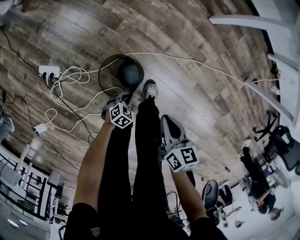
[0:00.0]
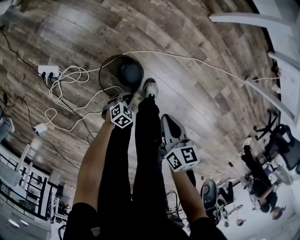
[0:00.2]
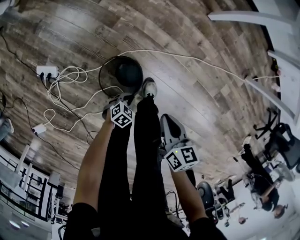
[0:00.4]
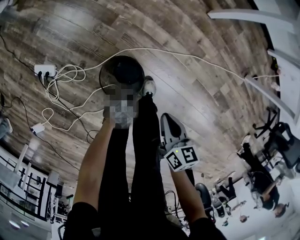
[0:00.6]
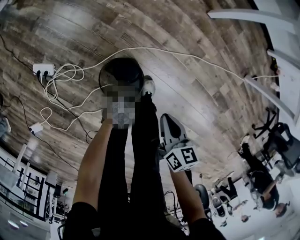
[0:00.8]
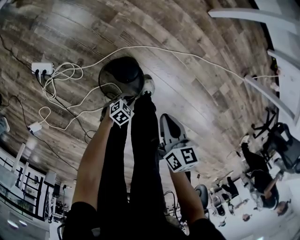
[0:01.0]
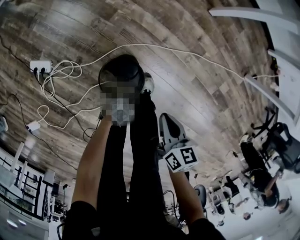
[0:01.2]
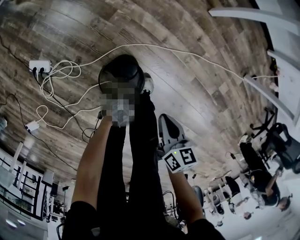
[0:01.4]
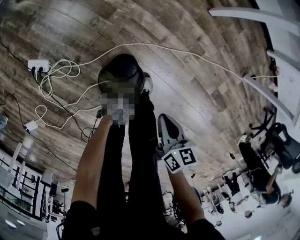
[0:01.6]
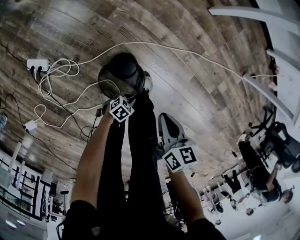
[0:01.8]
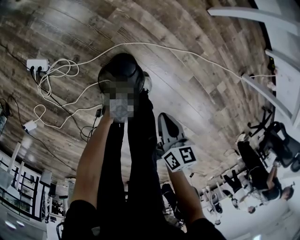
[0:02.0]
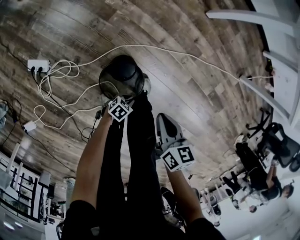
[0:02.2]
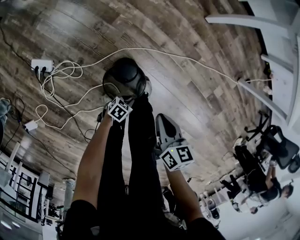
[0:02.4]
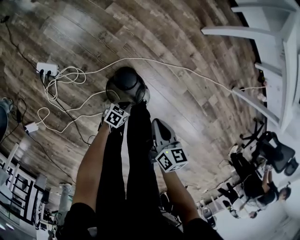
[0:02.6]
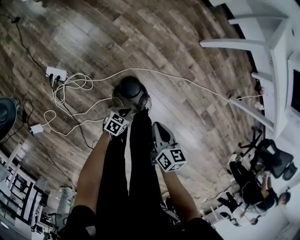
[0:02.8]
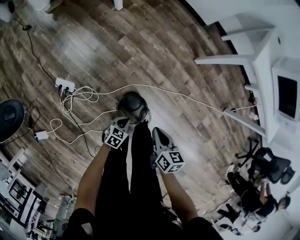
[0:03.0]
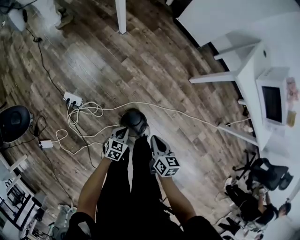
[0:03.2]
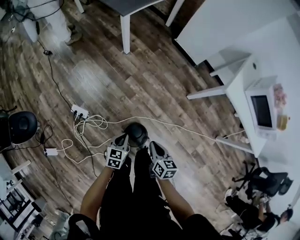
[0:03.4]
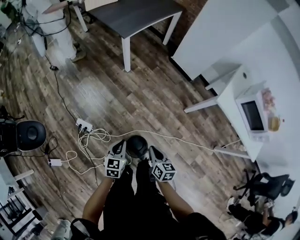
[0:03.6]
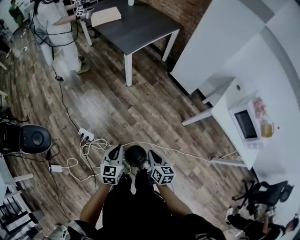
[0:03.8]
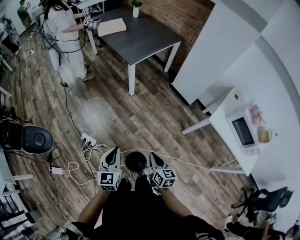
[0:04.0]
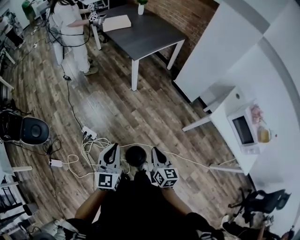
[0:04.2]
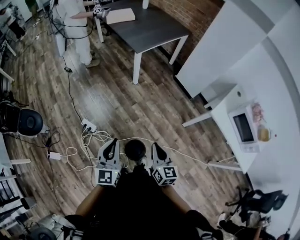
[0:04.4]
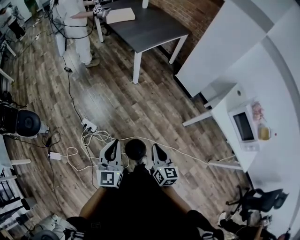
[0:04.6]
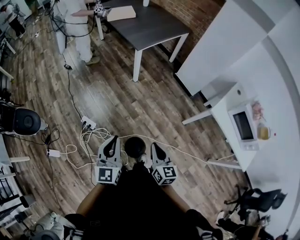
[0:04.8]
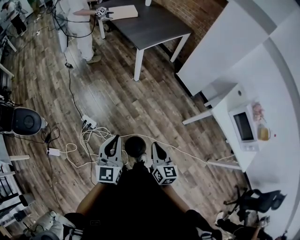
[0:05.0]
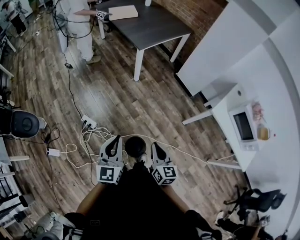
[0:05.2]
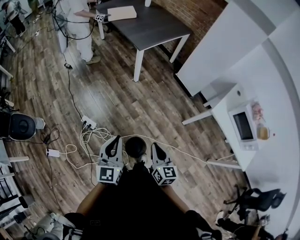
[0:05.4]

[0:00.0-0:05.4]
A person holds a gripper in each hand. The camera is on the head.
0:00.0 to 0:01.4: The left gripper ends up roughly 10 cm from where it was.
0:01.4 to 0:02.8: The left gripper shifts approximately 15 cm upward, and swivels approximately 30 degrees. The right gripper is displaced upward by roughly 10 cm.
0:02.8 to 0:04.0: The right gripper moves upward, approximately 35 cm, and changes its angle by approximately 20 degrees. The left gripper moves upward, about 70 cm, and tilts its fingers some 40 degrees upward.
0:04.0 to 0:05.4: The left gripper heads upward and backward, covering roughly 10 cm, while the right gripper travels upward by roughly 5 cm.

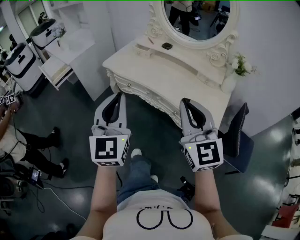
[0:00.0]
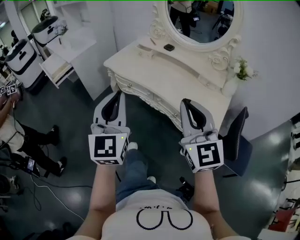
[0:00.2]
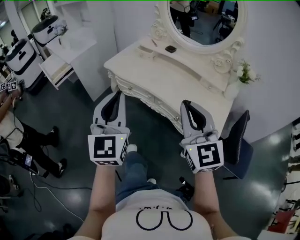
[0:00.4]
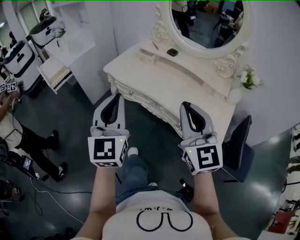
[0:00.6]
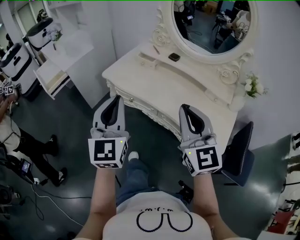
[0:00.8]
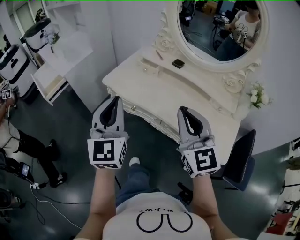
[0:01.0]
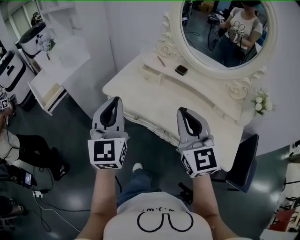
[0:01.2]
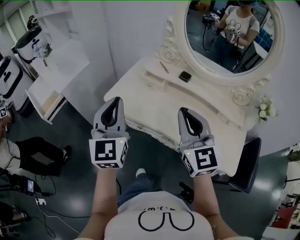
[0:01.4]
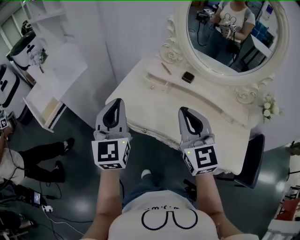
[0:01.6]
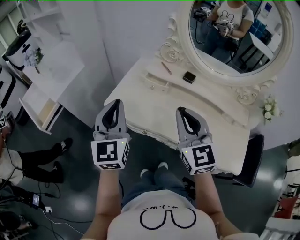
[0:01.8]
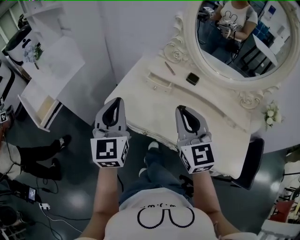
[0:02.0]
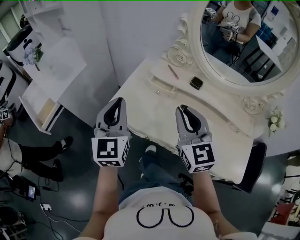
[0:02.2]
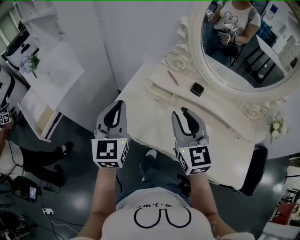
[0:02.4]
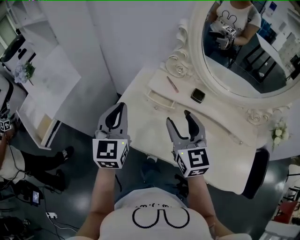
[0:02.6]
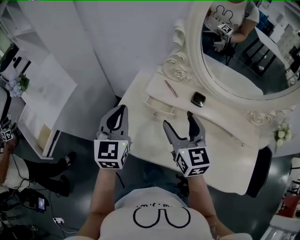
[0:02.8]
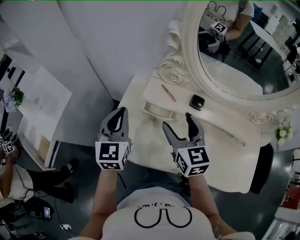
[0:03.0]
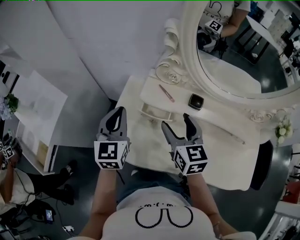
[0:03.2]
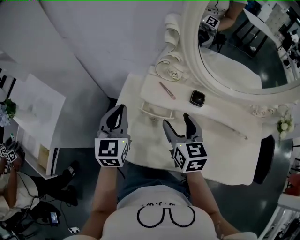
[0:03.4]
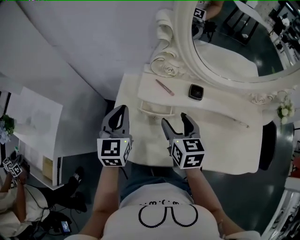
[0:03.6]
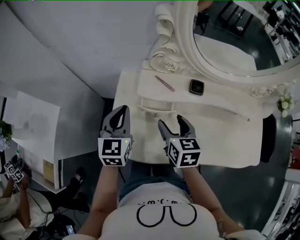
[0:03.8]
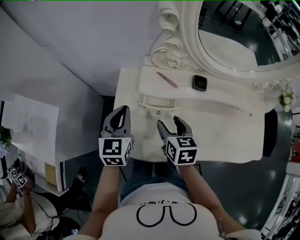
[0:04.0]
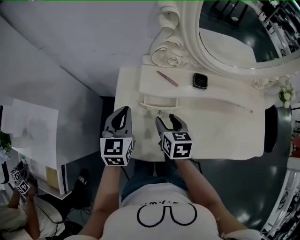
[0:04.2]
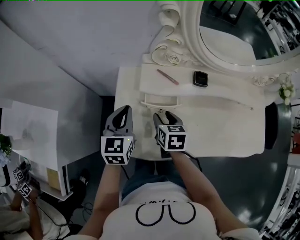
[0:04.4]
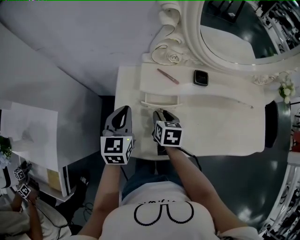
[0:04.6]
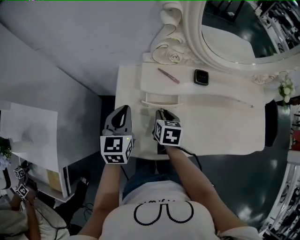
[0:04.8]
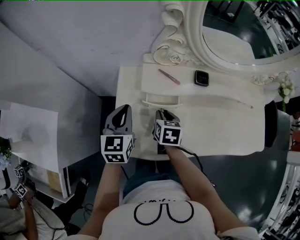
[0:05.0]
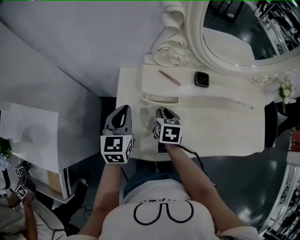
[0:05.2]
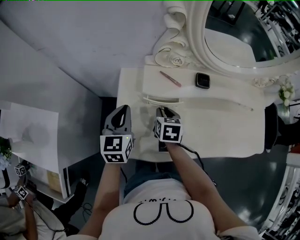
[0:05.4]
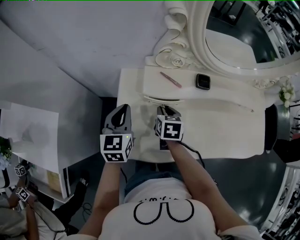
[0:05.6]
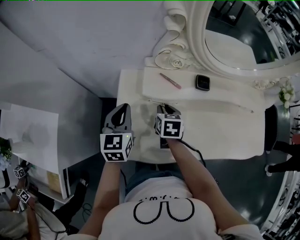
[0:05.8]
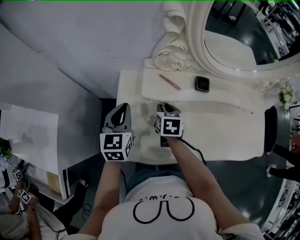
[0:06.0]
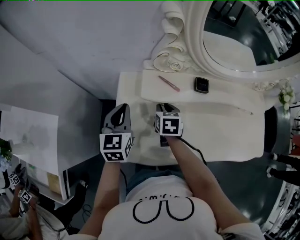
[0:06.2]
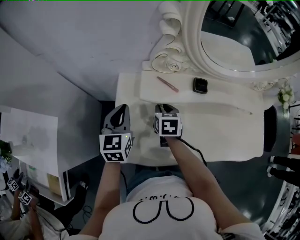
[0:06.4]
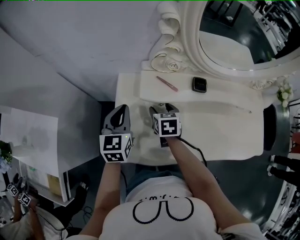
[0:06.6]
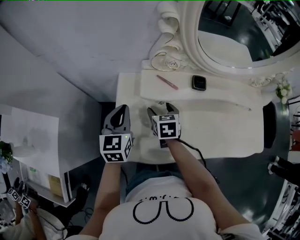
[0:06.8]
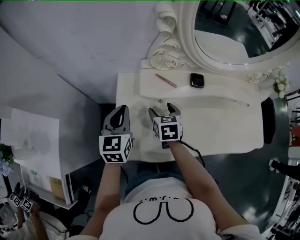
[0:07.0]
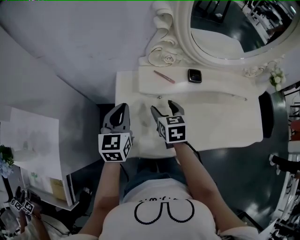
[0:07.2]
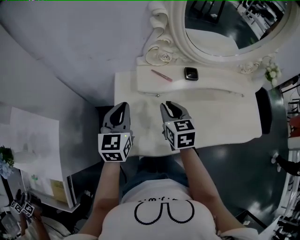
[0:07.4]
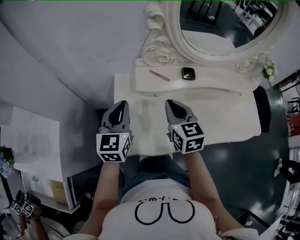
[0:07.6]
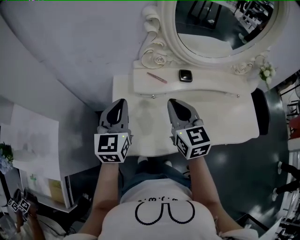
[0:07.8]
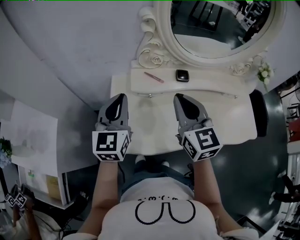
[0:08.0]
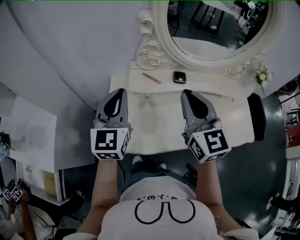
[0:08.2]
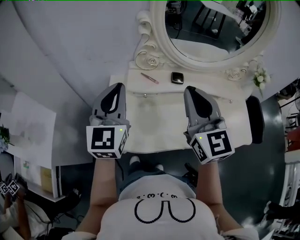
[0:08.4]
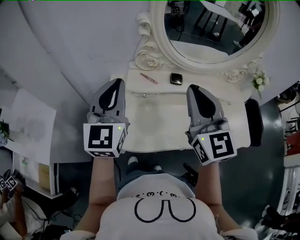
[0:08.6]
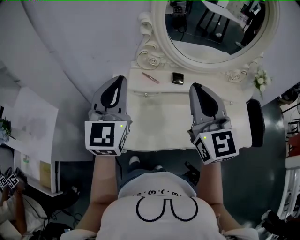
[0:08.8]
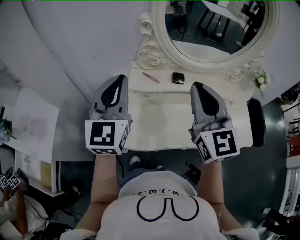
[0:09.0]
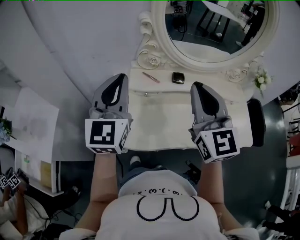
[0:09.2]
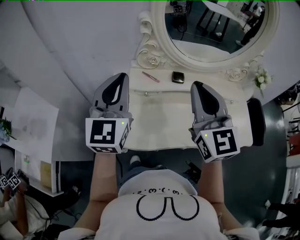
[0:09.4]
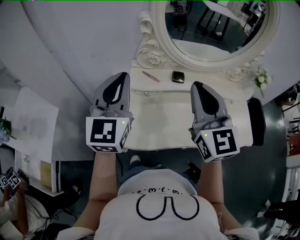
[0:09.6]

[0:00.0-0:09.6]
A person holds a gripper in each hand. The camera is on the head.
0:00.0 to 0:01.6: The two grippers go approximately 40 cm forward.
0:01.6 to 0:03.2: The left gripper heads forward, covering roughly 30 cm, and swivels some 20 degrees, while the right gripper is displaced forward and downward by some 30 cm, rotates about 30 degrees, and opens its fingers.
0:03.2 to 0:04.8: The left gripper is displaced downward by some 10 cm, and rotates roughly 20 degrees, while the right gripper goes approximately 20 cm downward, turns by approximately 40 degrees, and closes.
0:04.8 to 0:06.4: The right gripper is displaced forward by about 5 cm.
0:06.4 to 0:08.0: The left gripper goes approximately 15 cm upward and backward. The right gripper heads upward and backward, covering some 30 cm, angles its fingers upward, by about 40 degrees, and opens and closes again.
0:08.0 to 0:09.6: The right gripper travels upward and to the right by roughly 10 cm; the left gripper goes about 10 cm upward.

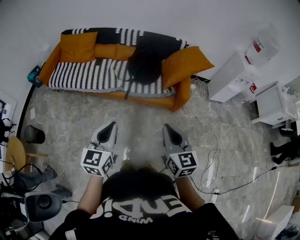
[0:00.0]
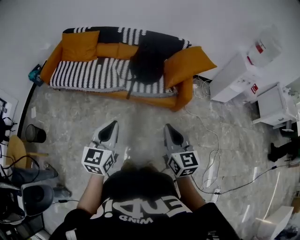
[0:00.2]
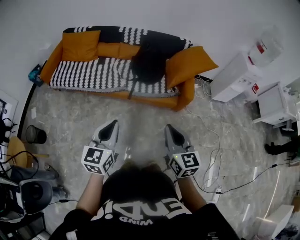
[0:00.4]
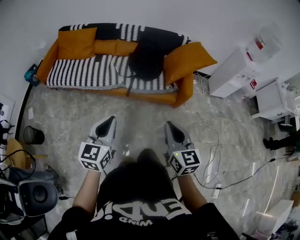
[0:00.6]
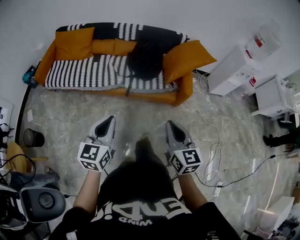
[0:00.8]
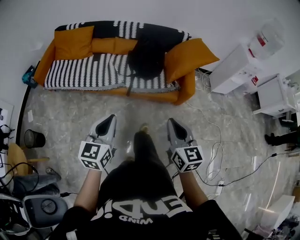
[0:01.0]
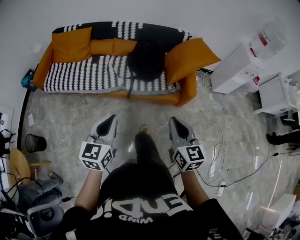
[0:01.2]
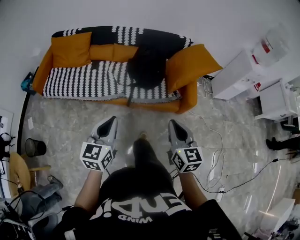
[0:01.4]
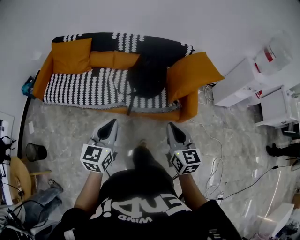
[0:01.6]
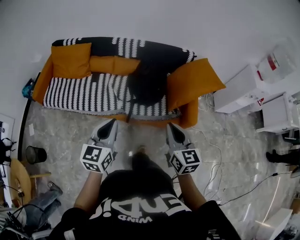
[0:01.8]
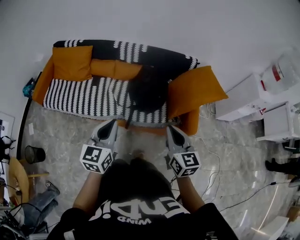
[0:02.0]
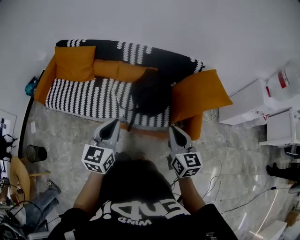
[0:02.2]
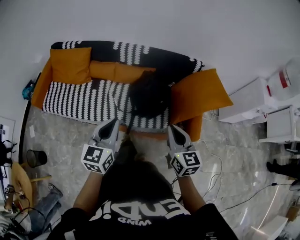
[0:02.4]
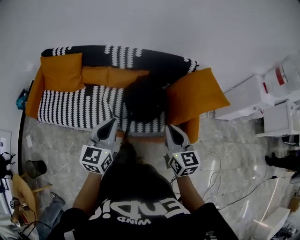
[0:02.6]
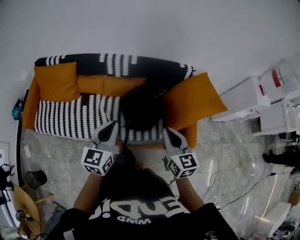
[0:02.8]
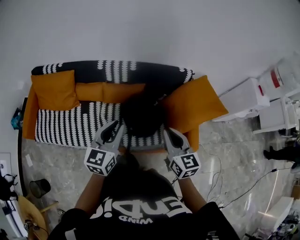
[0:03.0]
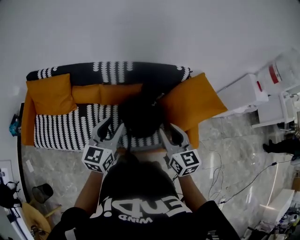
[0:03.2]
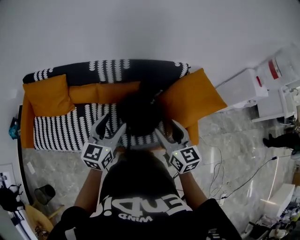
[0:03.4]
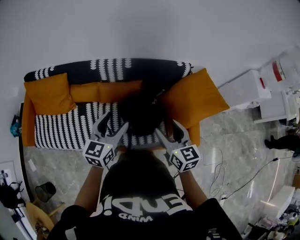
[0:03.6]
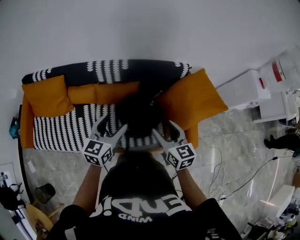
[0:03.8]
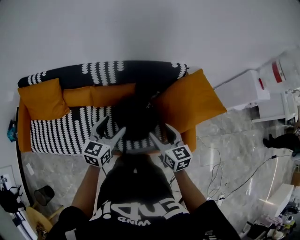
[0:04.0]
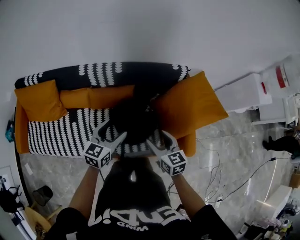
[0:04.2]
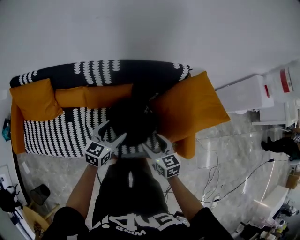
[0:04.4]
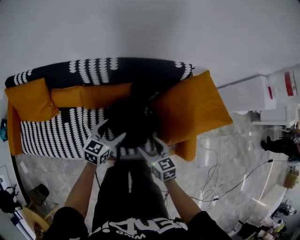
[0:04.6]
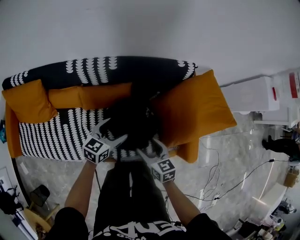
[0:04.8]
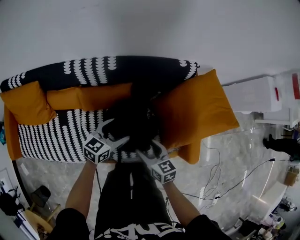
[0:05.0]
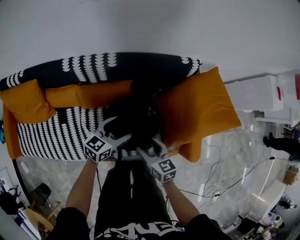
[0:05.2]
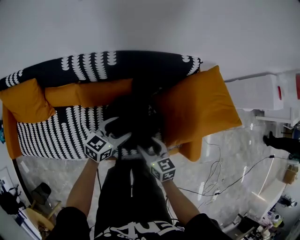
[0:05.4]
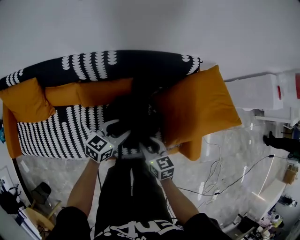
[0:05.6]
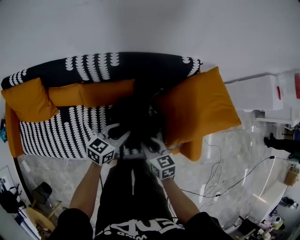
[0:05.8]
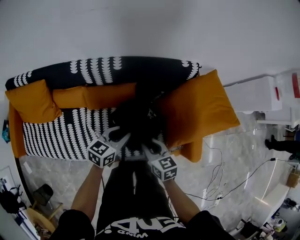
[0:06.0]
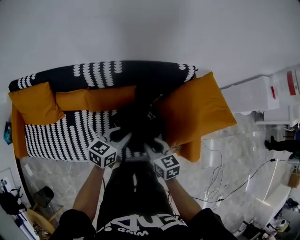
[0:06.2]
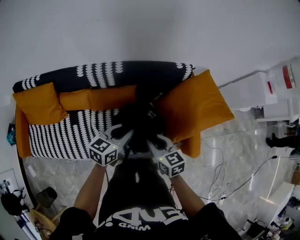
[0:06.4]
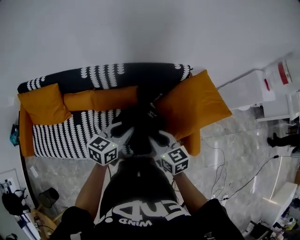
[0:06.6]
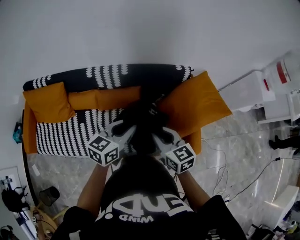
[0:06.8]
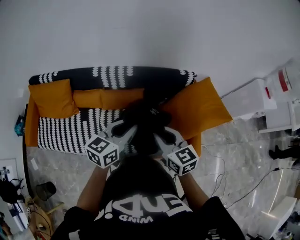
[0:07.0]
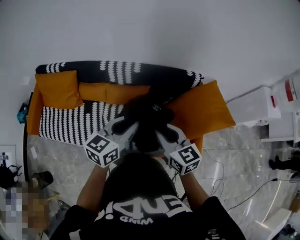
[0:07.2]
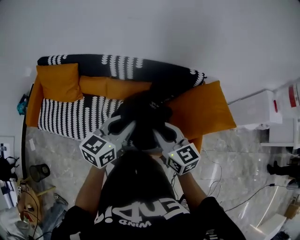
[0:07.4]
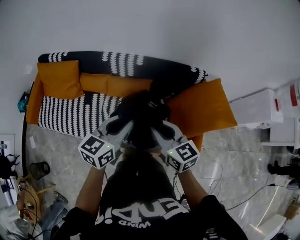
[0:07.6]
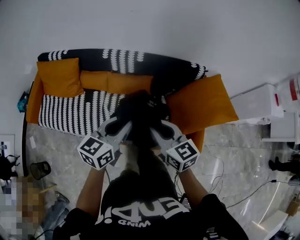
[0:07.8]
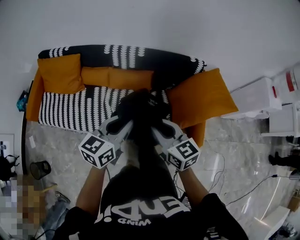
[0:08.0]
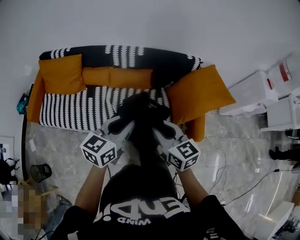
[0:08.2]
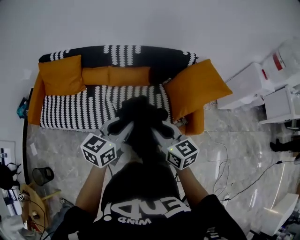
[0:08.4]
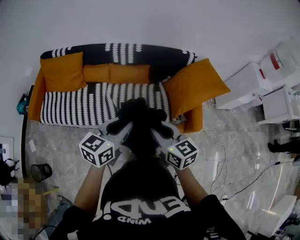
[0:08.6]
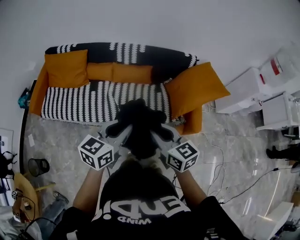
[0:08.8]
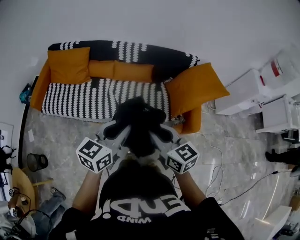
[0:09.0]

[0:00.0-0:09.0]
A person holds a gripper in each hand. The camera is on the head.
0:00.0 to 0:01.6: Both grippers travel together forward, about 25 cm.
0:01.6 to 0:03.0: Both grippers travel together forward, about 40 cm.
0:03.0 to 0:04.4: The two grippers go approximately 25 cm downward and forward. The left gripper changes its angle by approximately 20 degrees, and opens; the right gripper rotates some 20 degrees, and opens up.
0:04.4 to 0:06.0: Both grippers move downward, roughly 5 cm. The left gripper closes; the right gripper closes its fingers.
0:06.0 to 0:07.6: The right gripper goes roughly 25 cm upward, and changes its angle by approximately 30 degrees, while the left gripper travels upward and backward by roughly 30 cm, and swivels about 20 degrees.
0:07.6 to 0:09.0: The grippers both shift backward by roughly 30 cm.
